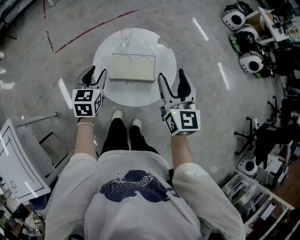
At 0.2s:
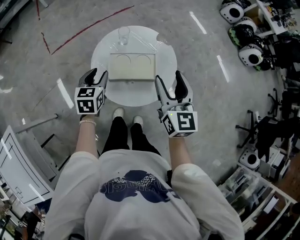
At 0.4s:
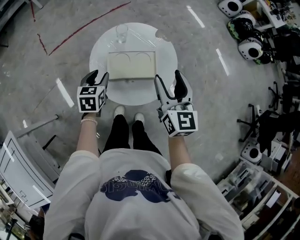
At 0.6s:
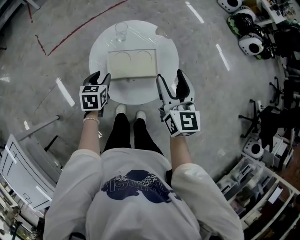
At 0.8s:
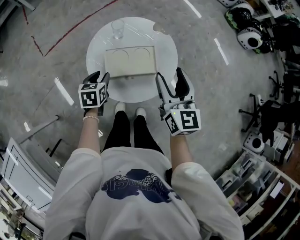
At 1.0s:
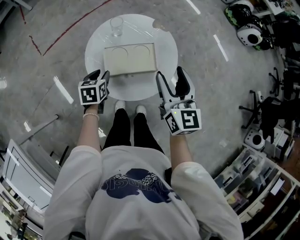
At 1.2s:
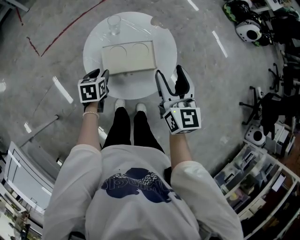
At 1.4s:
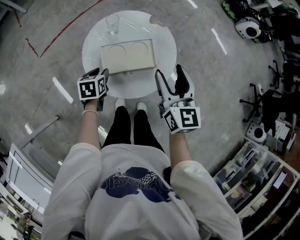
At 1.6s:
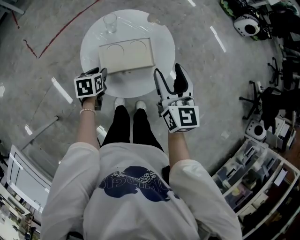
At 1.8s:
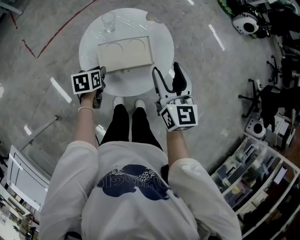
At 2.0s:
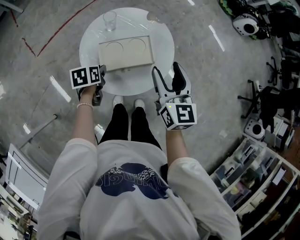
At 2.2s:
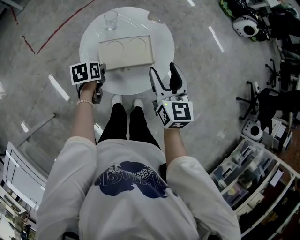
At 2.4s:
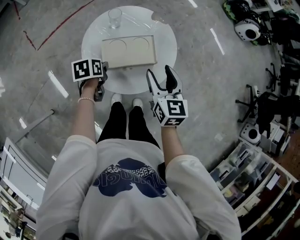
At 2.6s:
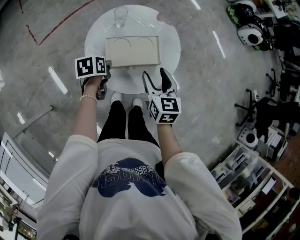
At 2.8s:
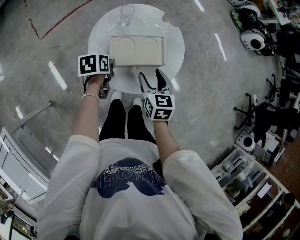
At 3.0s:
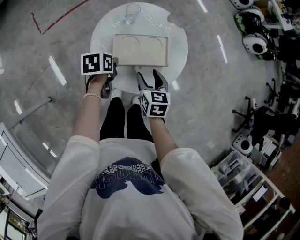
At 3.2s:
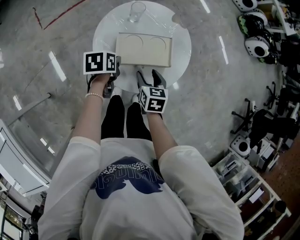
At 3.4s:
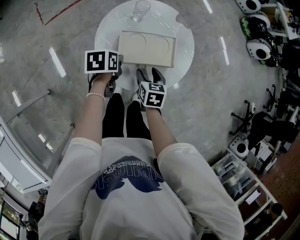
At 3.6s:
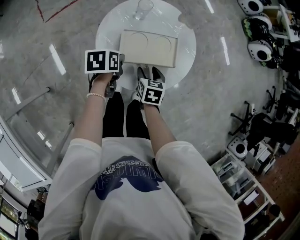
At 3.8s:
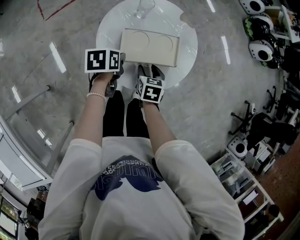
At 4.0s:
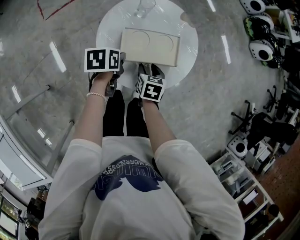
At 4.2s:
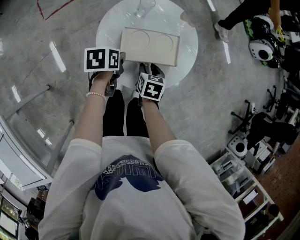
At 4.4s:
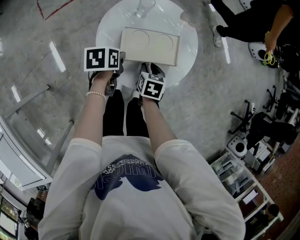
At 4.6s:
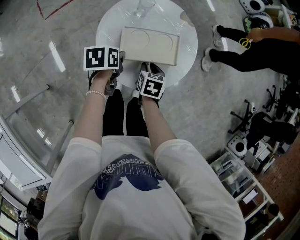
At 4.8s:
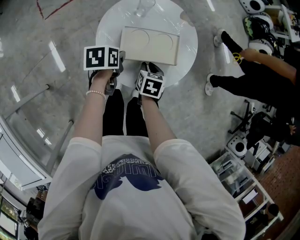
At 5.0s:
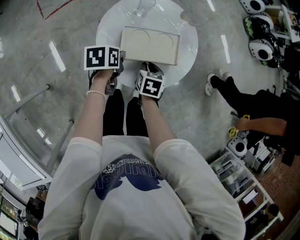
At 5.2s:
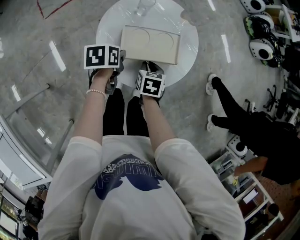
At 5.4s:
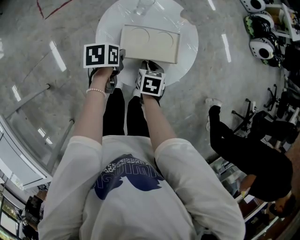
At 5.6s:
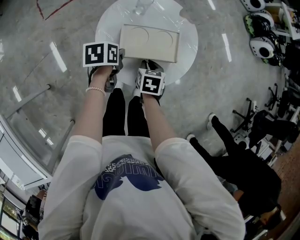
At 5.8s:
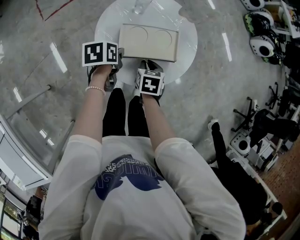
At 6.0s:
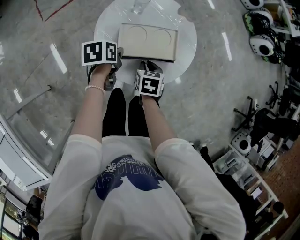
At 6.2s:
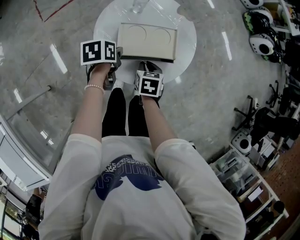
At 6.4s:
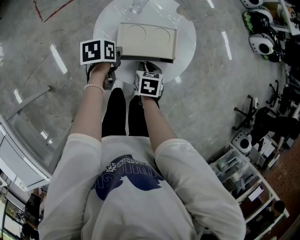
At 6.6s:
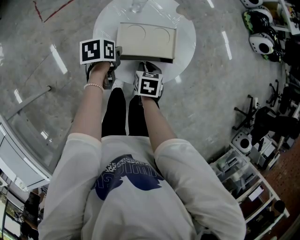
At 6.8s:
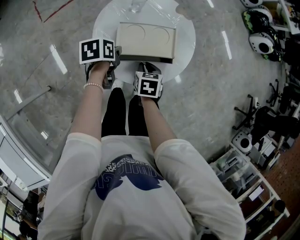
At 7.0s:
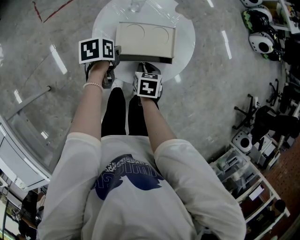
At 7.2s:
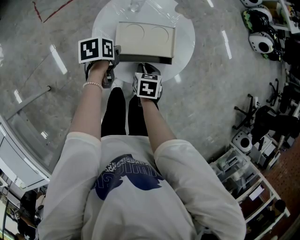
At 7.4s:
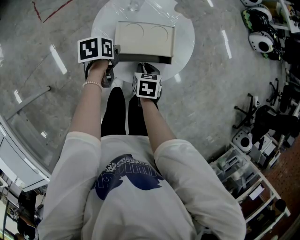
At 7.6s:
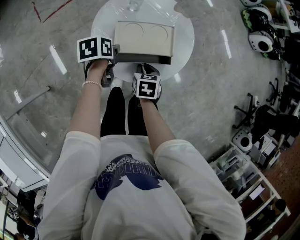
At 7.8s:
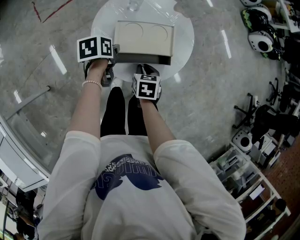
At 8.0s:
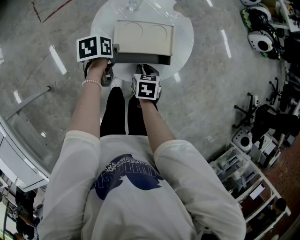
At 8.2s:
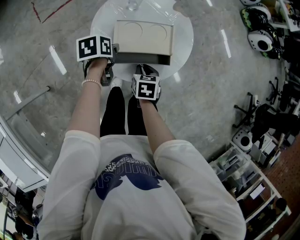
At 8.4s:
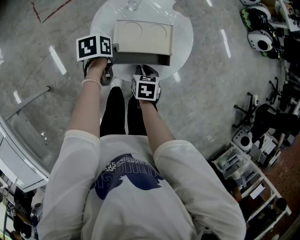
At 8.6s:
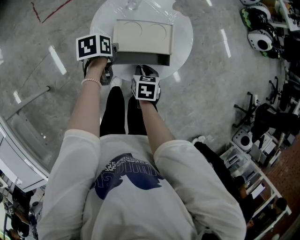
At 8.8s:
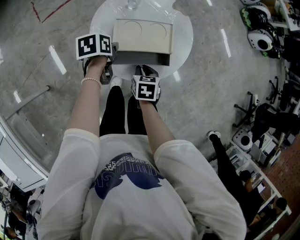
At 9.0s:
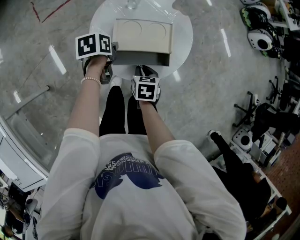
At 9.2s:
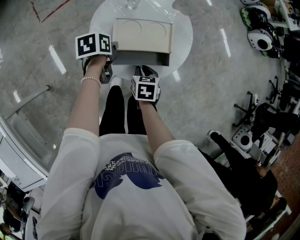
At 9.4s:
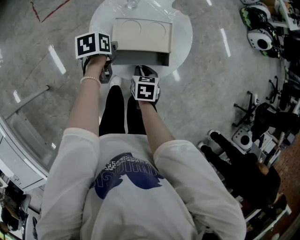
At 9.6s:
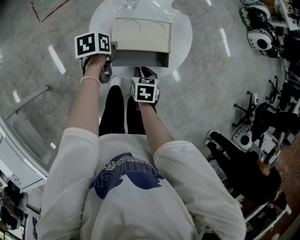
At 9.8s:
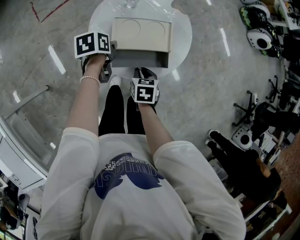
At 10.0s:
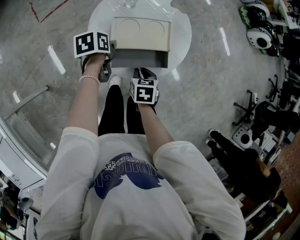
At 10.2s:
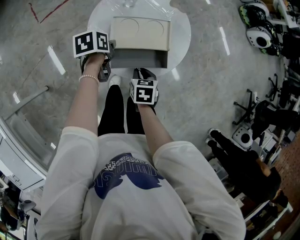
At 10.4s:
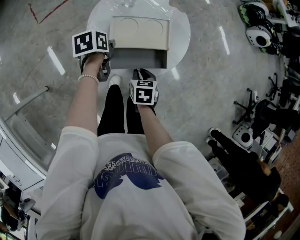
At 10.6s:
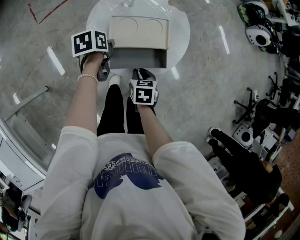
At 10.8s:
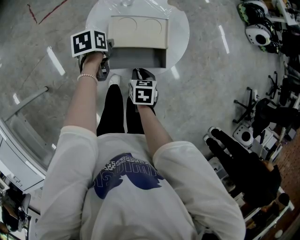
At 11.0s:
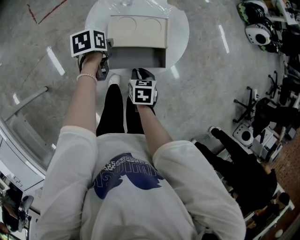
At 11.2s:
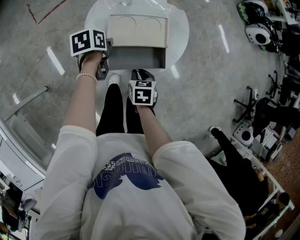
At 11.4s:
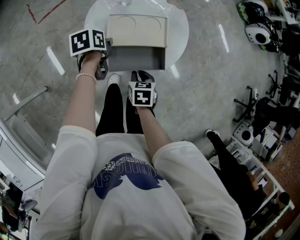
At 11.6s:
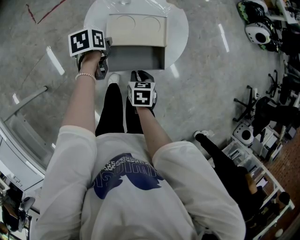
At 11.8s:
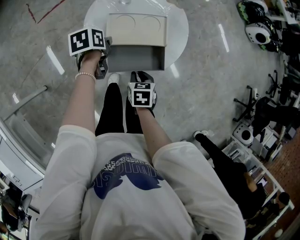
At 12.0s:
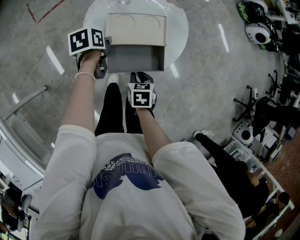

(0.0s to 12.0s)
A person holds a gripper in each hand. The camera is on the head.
0.0s - 1.6s: The left gripper heads downward, covering about 15 cm, and swivels roughly 30 degrees. The right gripper travels downward by some 5 cm.
1.6s - 3.0s: The right gripper shifts some 20 cm downward and to the left, and swivels approximately 30 degrees.
3.0s - 4.4s: The right gripper travels downward by approximately 5 cm, and closes.
4.4s - 9.0s: The grippers move only a little.
9.0s - 12.0s: The grippers stay close to where they were, moving slightly.

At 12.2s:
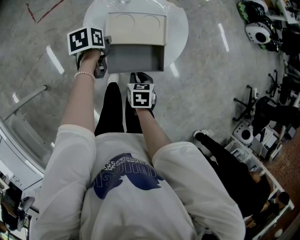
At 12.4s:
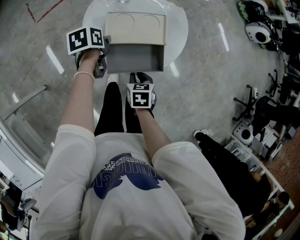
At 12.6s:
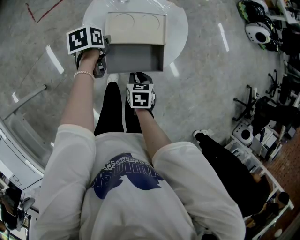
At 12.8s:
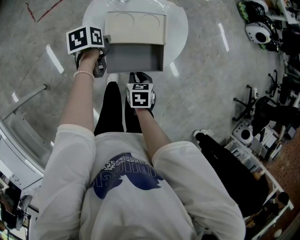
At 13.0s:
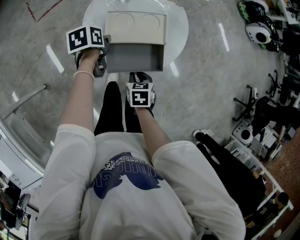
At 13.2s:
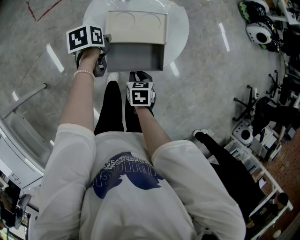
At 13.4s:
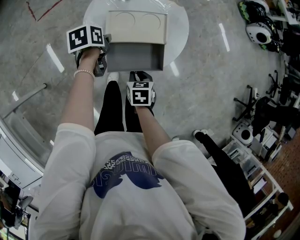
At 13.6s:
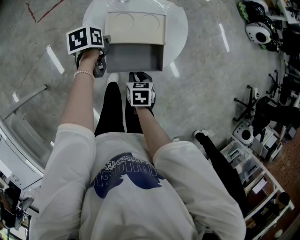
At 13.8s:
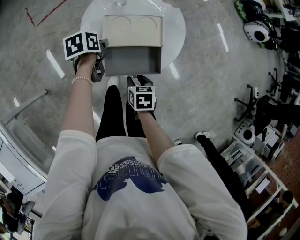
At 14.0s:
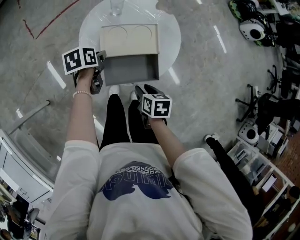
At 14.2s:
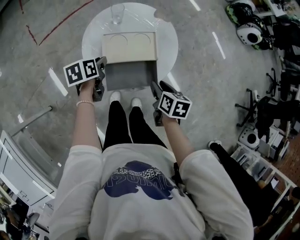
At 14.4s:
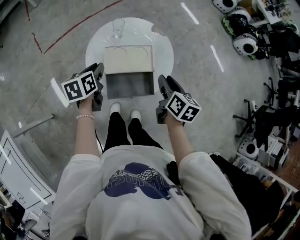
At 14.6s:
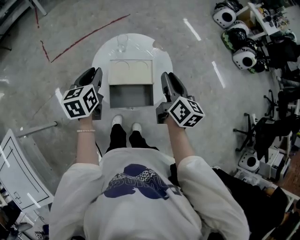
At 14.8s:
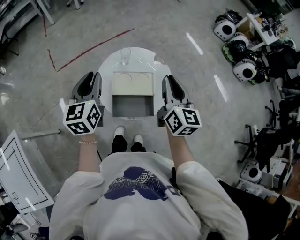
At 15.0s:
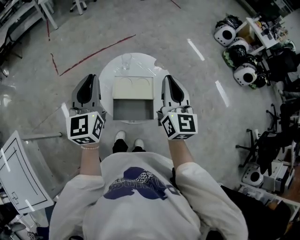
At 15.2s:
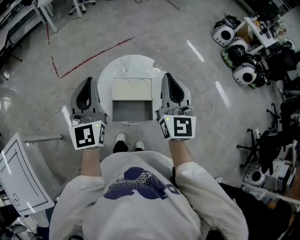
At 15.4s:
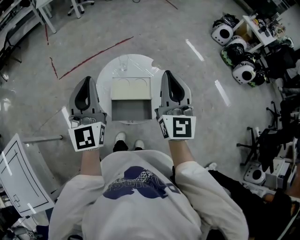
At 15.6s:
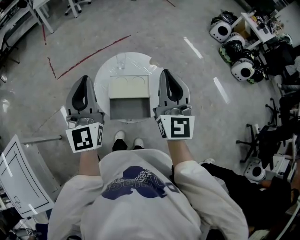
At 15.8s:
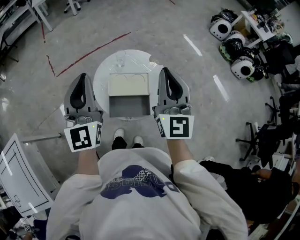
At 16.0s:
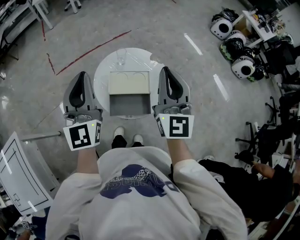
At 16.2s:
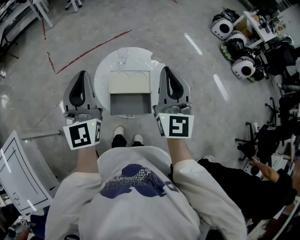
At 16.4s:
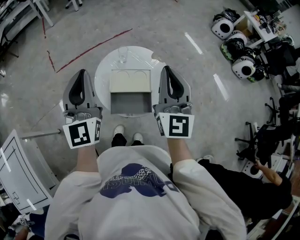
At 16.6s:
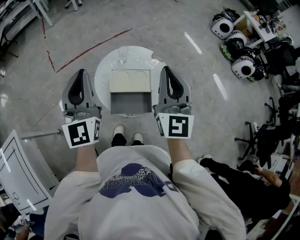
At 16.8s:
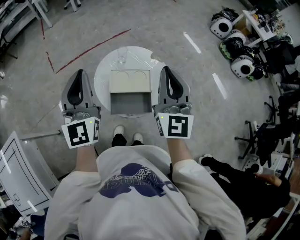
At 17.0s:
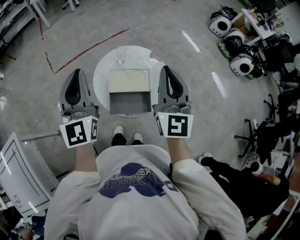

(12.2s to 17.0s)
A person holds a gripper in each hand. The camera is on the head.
12.2s - 13.8s: The right gripper opens up.
13.8s - 15.4s: Both grippers travel together upward, about 40 cm. The left gripper tips its fingers upward by about 70 degrees, while the right gripper tips its fingers upward by roughly 70 degrees, and closes up.
15.4s - 17.0s: The grippers stay close to where they were, moving slightly.

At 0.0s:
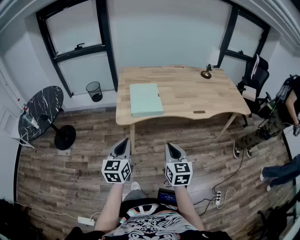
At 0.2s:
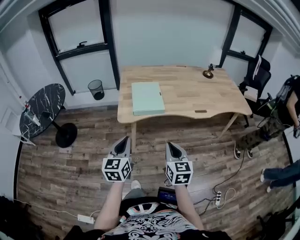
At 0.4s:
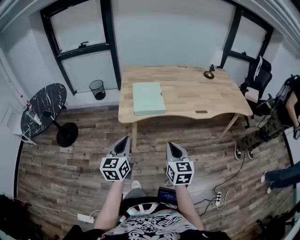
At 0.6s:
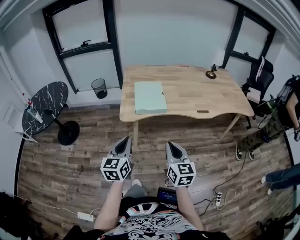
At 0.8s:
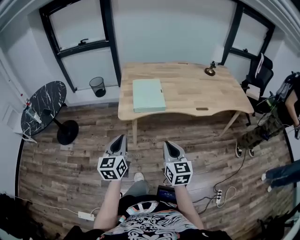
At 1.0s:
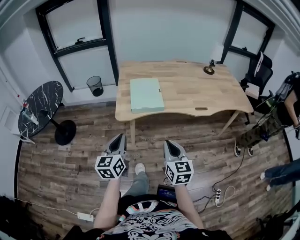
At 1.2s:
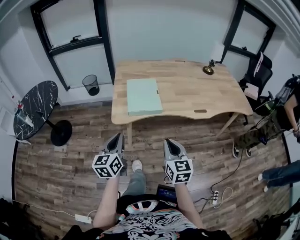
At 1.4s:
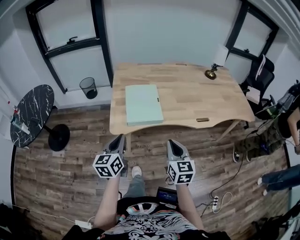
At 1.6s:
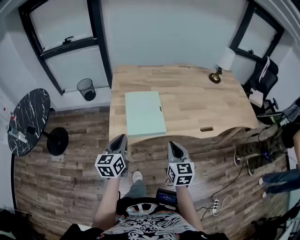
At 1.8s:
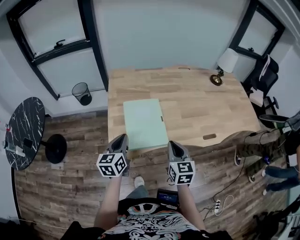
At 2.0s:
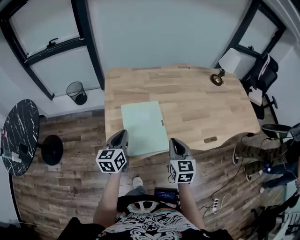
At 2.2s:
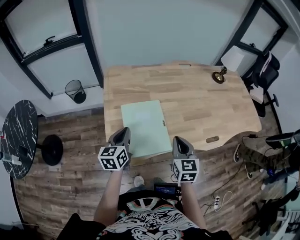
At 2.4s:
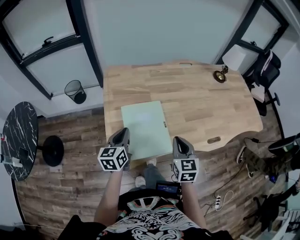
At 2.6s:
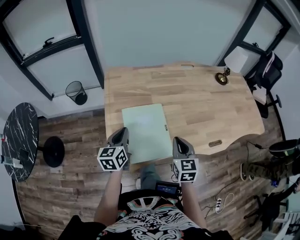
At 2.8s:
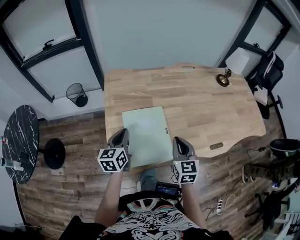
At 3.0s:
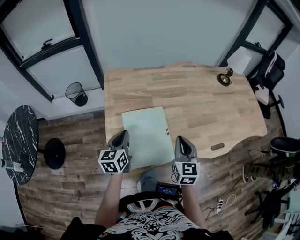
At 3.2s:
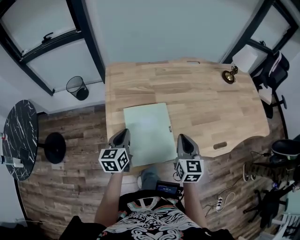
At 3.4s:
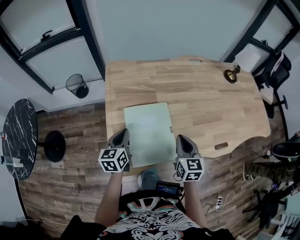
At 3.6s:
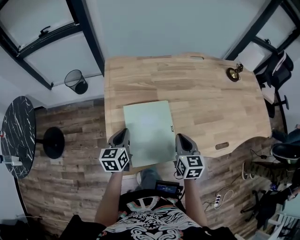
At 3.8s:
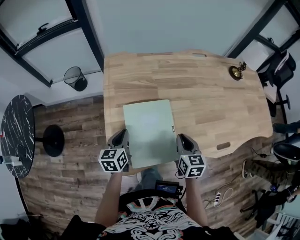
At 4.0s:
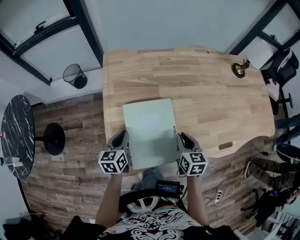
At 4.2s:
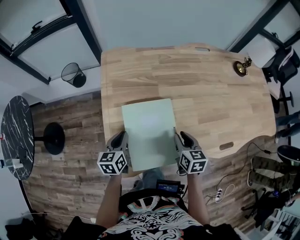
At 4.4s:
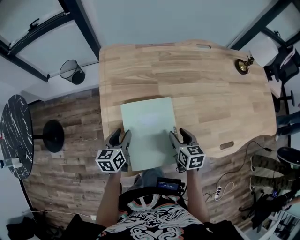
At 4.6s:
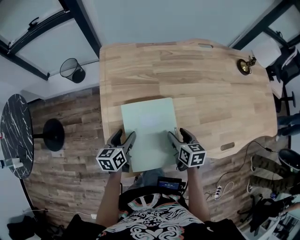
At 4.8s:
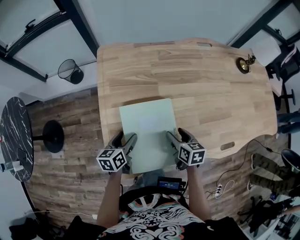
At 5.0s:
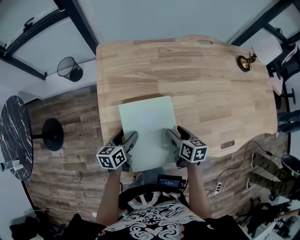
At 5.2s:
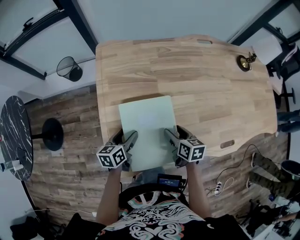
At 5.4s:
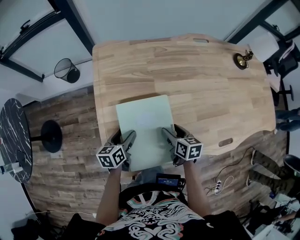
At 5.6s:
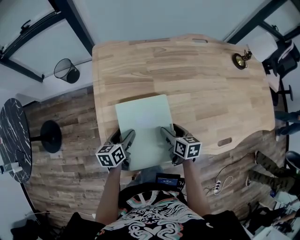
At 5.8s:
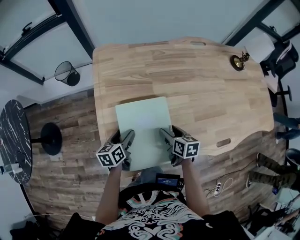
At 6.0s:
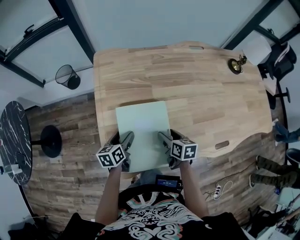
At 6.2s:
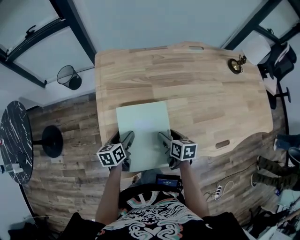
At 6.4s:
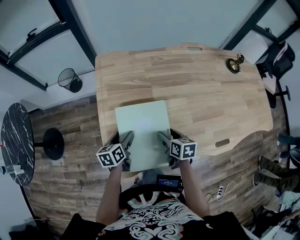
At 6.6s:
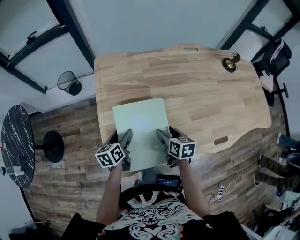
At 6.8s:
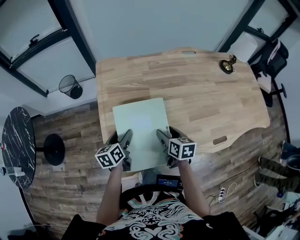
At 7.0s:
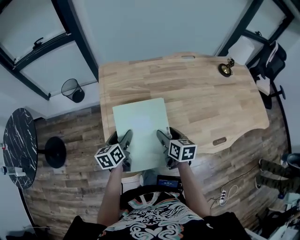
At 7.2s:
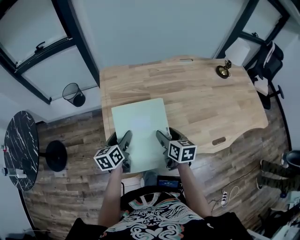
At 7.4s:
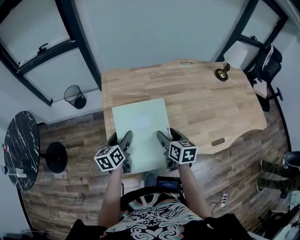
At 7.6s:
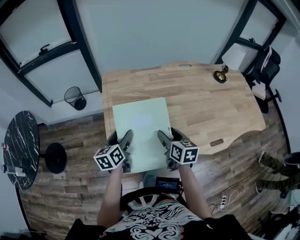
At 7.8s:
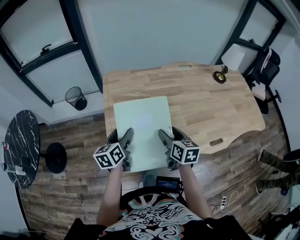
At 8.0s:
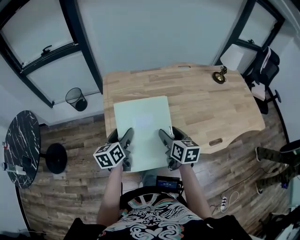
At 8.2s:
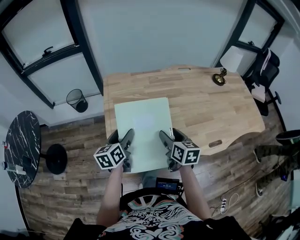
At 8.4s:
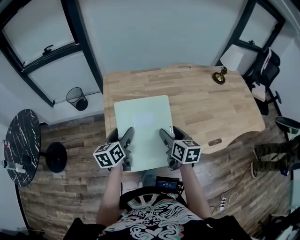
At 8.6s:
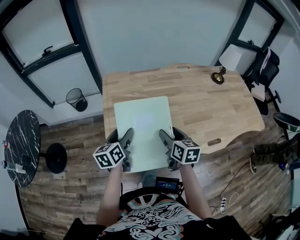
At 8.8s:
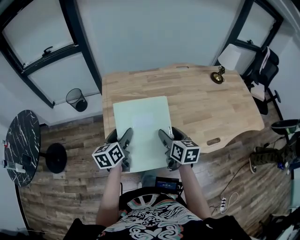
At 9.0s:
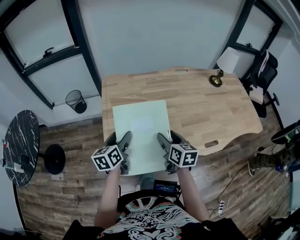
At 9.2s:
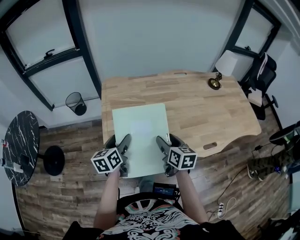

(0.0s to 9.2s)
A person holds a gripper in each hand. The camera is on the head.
0.0s - 1.6s: The two grippers go approximately 25 cm forward.
1.6s - 3.0s: The two grippers go approximately 20 cm forward.
3.0s - 4.6s: The right gripper goes roughly 15 cm downward and forward, changes its angle by about 40 degrees, and opens. Meanwhile the left gripper travels downward by roughly 10 cm, and opens its fingers.
4.6s - 6.2s: The grippers move only a little.
6.2s - 7.6s: The two grippers go roughly 15 cm upward.
7.6s - 9.2s: The right gripper ends up approximately 5 cm from where it was. The left gripper moves approximately 5 cm.
